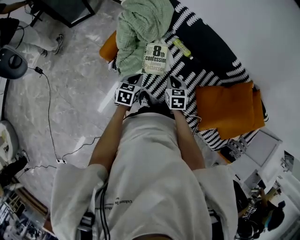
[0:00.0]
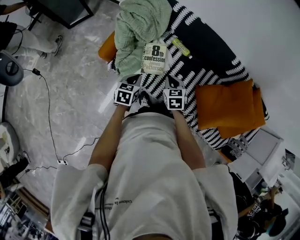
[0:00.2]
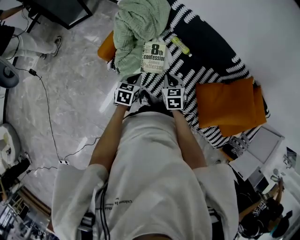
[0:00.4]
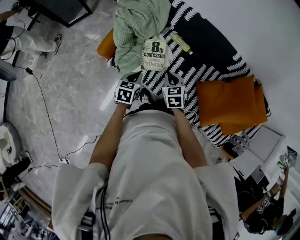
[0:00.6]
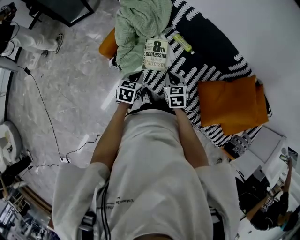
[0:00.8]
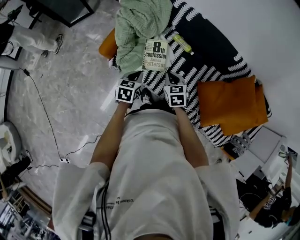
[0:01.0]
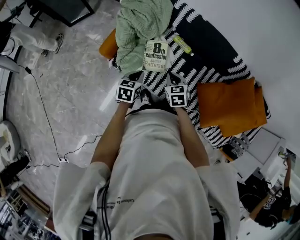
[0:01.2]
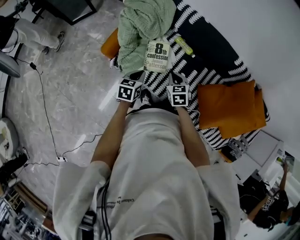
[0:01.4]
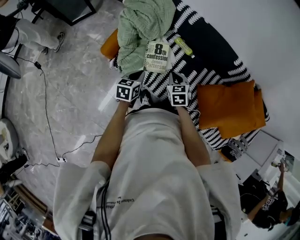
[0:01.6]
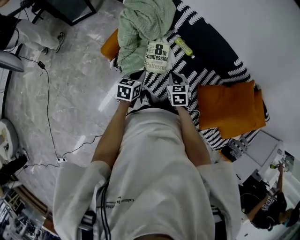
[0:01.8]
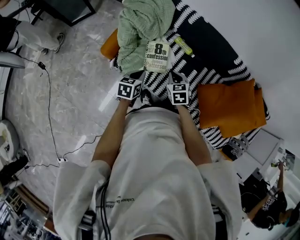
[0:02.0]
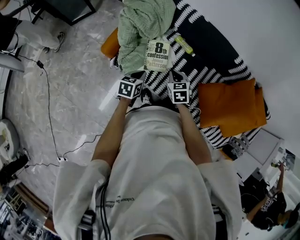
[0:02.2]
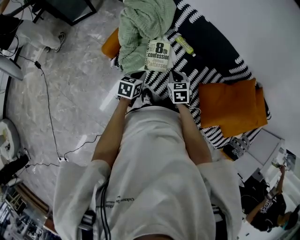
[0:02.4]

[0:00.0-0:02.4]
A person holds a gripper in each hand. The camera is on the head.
0:00.0 to 0:02.4: The grippers move only a little.

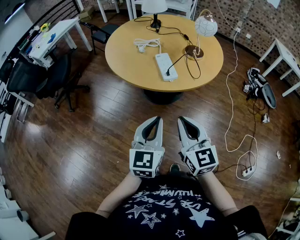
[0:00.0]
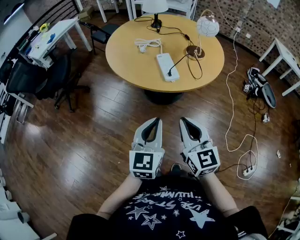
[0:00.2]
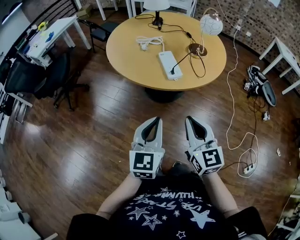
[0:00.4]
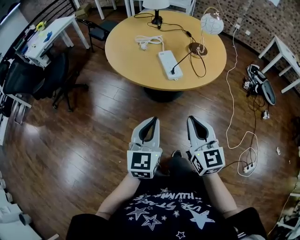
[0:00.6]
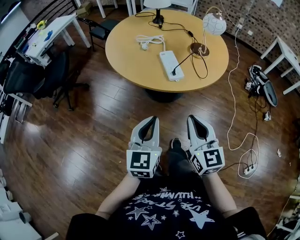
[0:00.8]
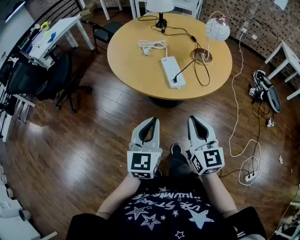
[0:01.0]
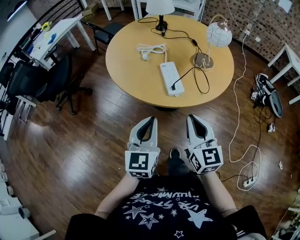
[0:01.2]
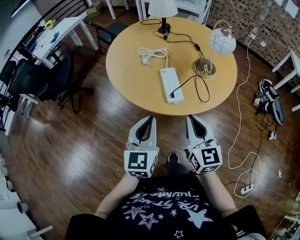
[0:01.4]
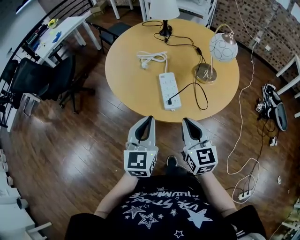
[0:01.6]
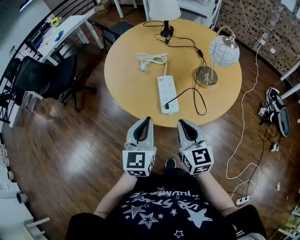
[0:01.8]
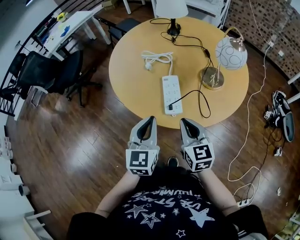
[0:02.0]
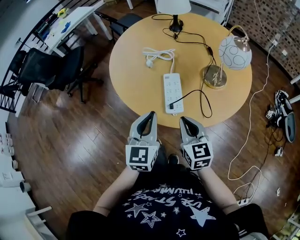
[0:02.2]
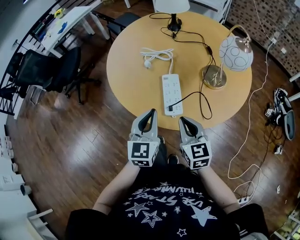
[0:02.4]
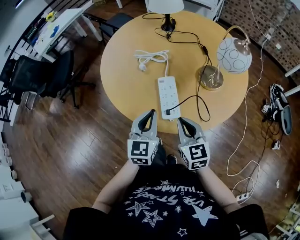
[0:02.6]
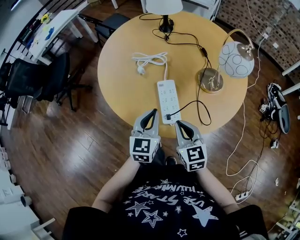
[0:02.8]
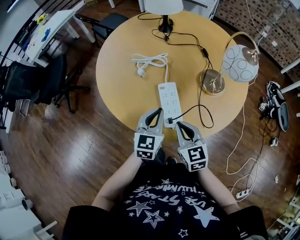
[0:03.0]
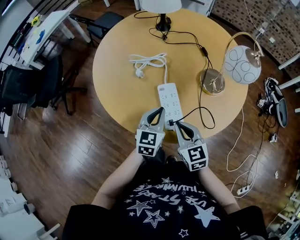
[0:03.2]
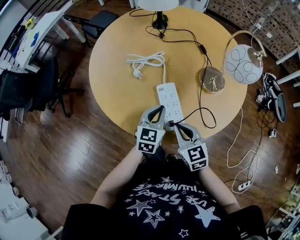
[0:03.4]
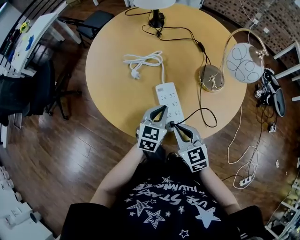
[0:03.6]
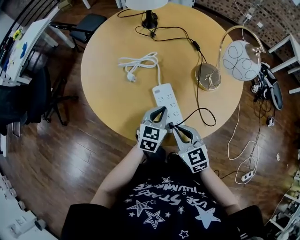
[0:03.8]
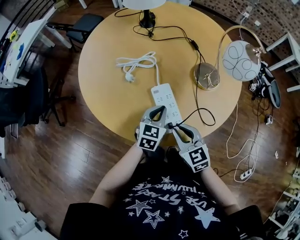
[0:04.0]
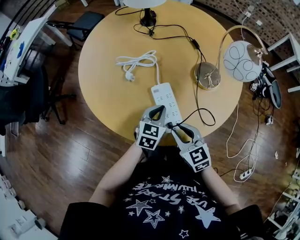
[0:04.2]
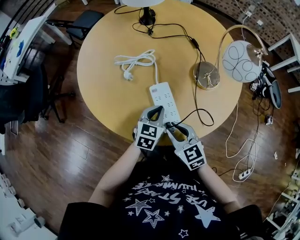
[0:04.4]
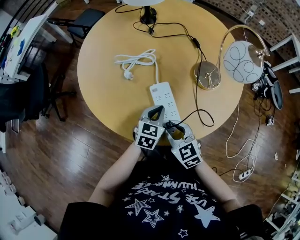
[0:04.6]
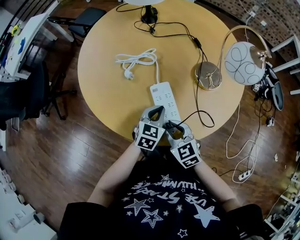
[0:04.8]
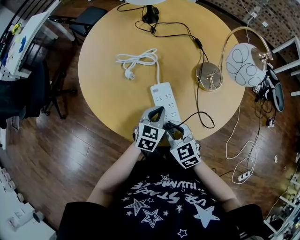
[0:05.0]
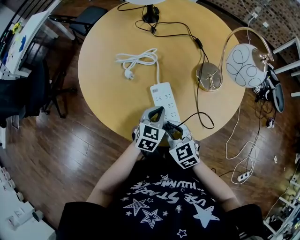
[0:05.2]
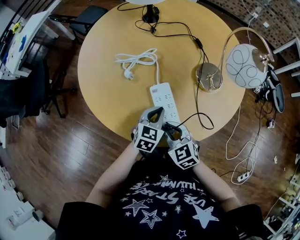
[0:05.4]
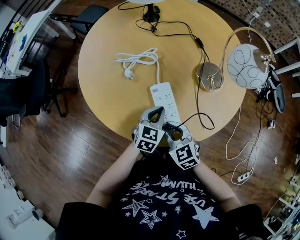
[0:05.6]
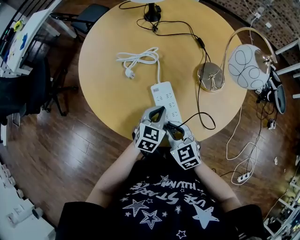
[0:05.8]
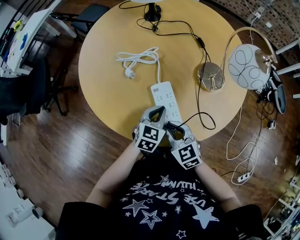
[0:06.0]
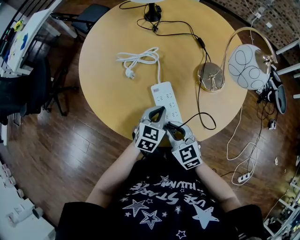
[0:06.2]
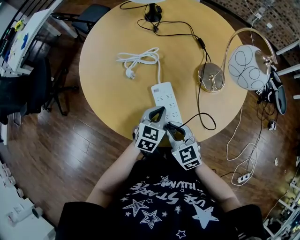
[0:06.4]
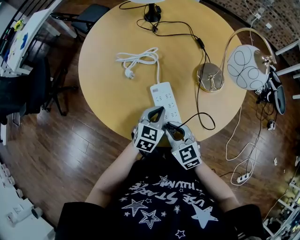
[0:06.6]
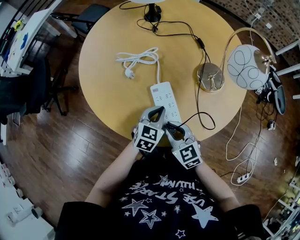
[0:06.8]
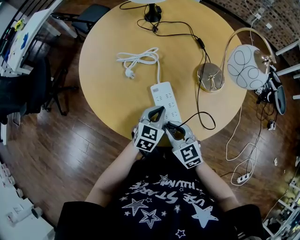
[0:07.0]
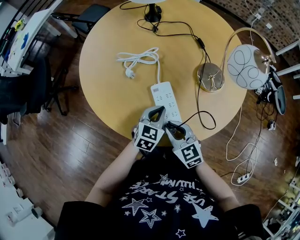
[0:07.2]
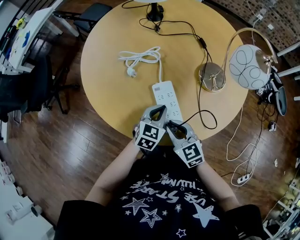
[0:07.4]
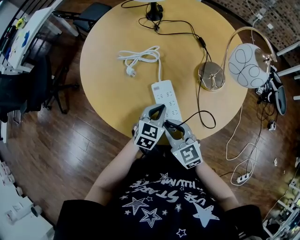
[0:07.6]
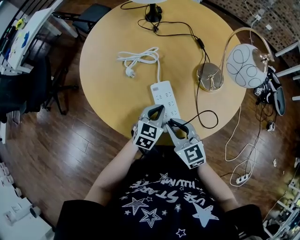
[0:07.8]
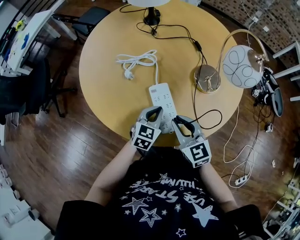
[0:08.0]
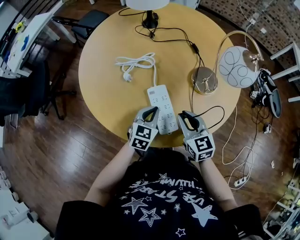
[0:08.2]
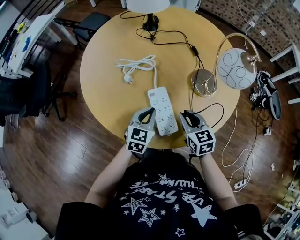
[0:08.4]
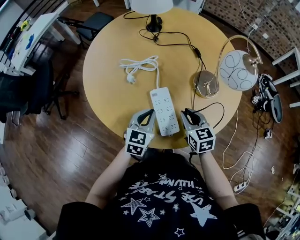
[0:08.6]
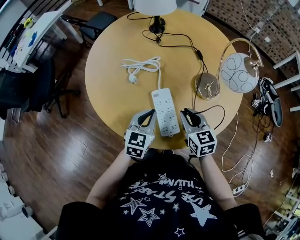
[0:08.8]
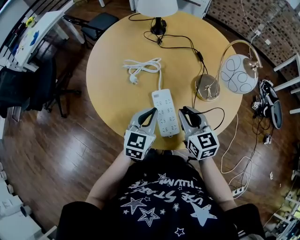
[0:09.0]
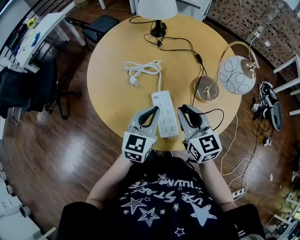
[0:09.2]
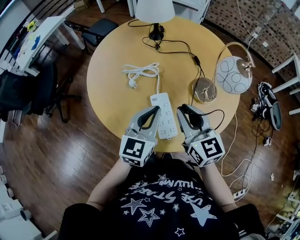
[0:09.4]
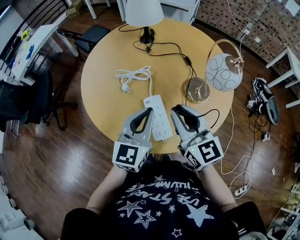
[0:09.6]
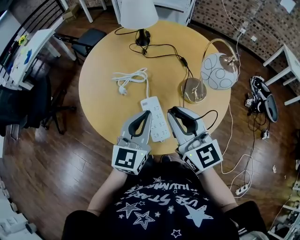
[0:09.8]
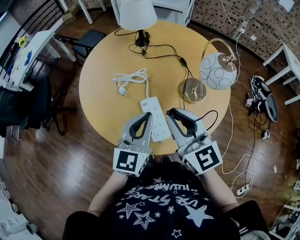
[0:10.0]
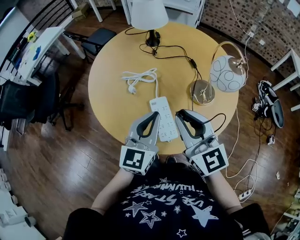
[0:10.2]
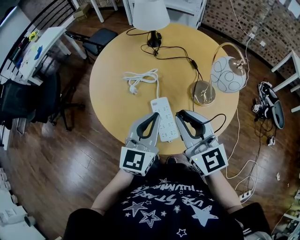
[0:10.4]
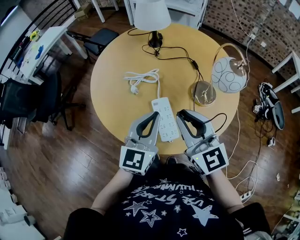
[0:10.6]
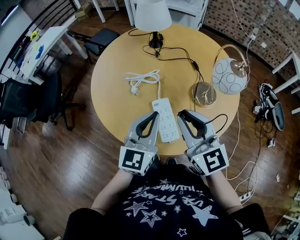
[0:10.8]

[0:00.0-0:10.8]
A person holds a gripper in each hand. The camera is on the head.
0:00.0 to 0:01.6: The two grippers go about 20 cm forward.
0:01.6 to 0:03.0: The right gripper heads downward and forward, covering approximately 15 cm; the left gripper moves forward and downward, about 20 cm.
0:03.0 to 0:04.6: The left gripper heads downward, covering approximately 10 cm, and rotates roughly 20 degrees; the right gripper moves roughly 5 cm, and opens up.
0:04.6 to 0:07.8: The grippers stay close to where they were, moving slightly.
0:07.8 to 0:09.2: The left gripper is displaced upward by roughly 15 cm, and turns by roughly 20 degrees; the right gripper travels upward, forward and to the right by about 15 cm.
0:09.2 to 0:10.8: Both grippers travel together upward, roughly 10 cm.

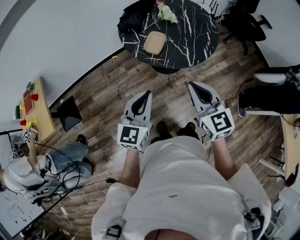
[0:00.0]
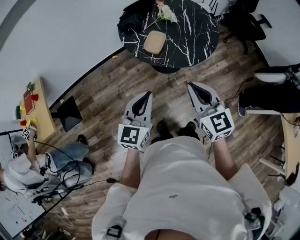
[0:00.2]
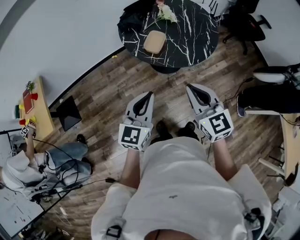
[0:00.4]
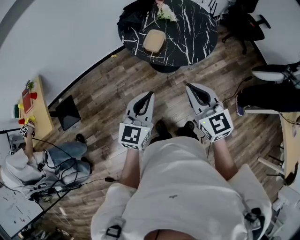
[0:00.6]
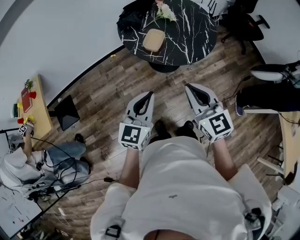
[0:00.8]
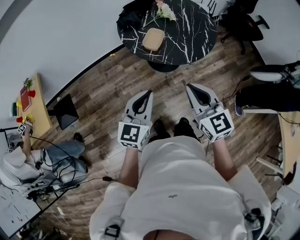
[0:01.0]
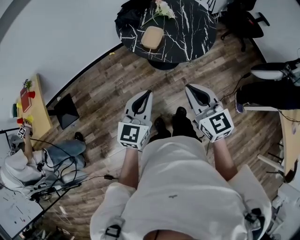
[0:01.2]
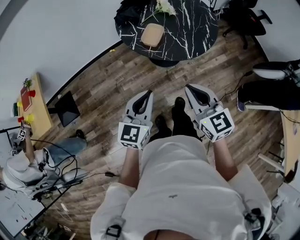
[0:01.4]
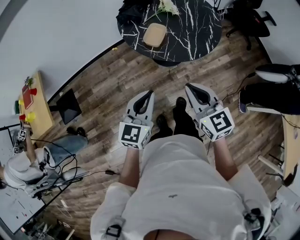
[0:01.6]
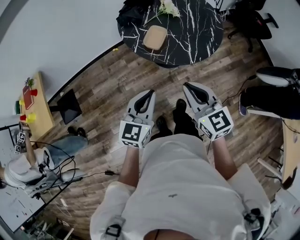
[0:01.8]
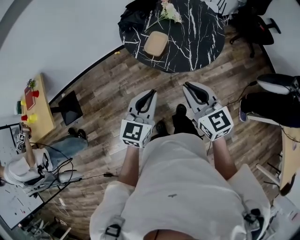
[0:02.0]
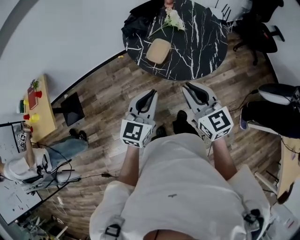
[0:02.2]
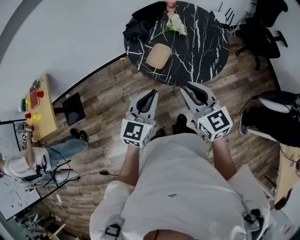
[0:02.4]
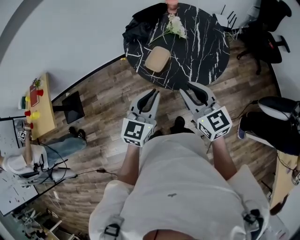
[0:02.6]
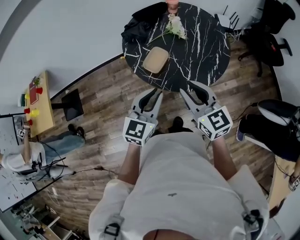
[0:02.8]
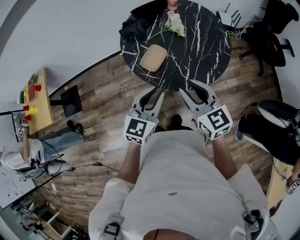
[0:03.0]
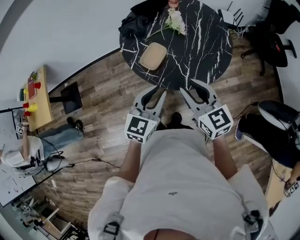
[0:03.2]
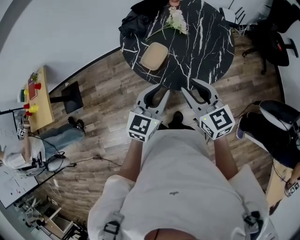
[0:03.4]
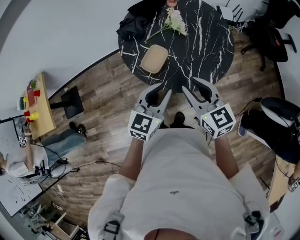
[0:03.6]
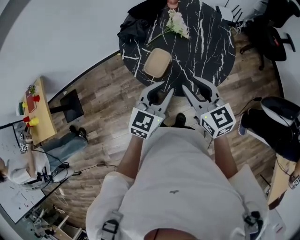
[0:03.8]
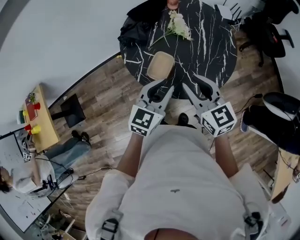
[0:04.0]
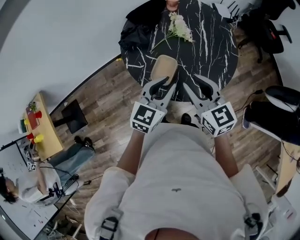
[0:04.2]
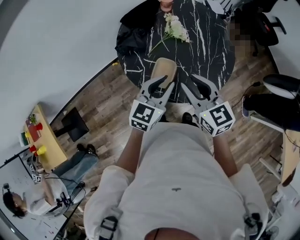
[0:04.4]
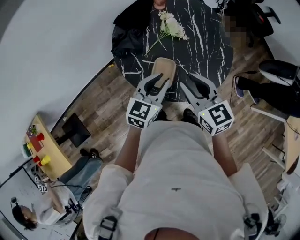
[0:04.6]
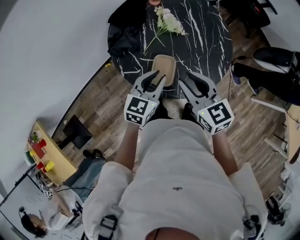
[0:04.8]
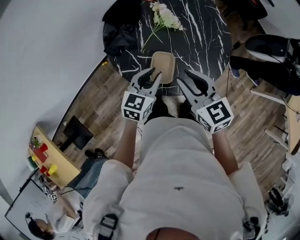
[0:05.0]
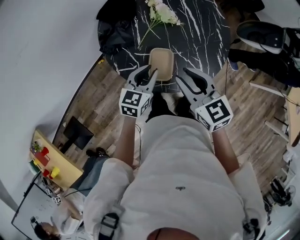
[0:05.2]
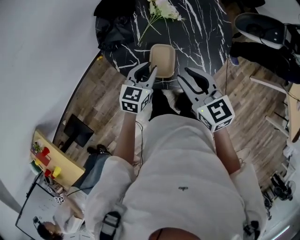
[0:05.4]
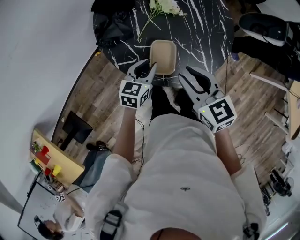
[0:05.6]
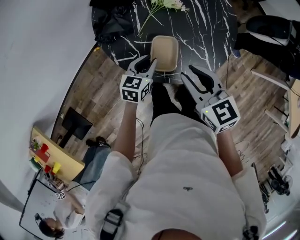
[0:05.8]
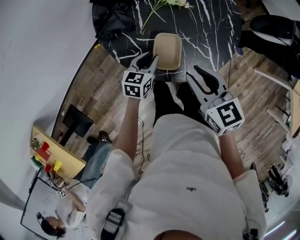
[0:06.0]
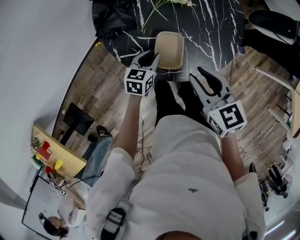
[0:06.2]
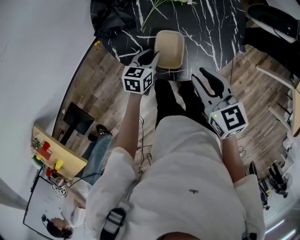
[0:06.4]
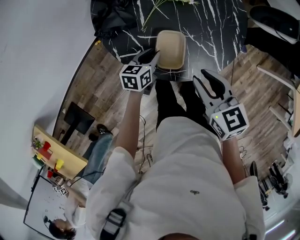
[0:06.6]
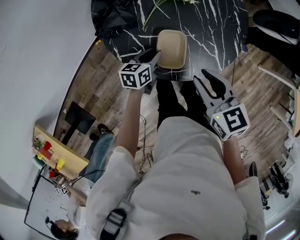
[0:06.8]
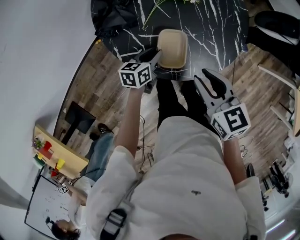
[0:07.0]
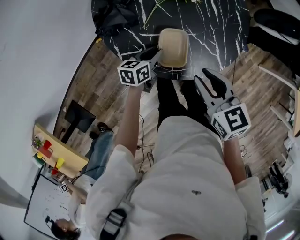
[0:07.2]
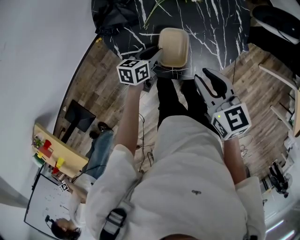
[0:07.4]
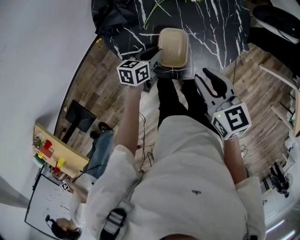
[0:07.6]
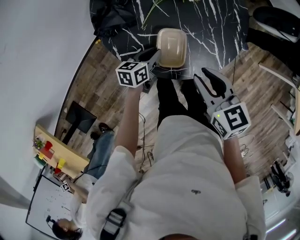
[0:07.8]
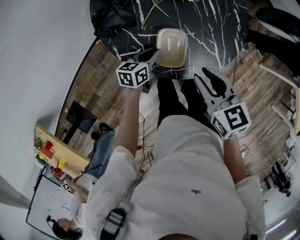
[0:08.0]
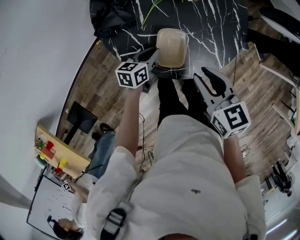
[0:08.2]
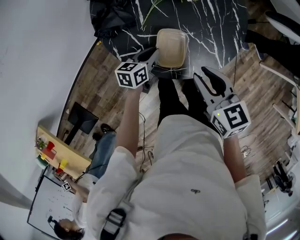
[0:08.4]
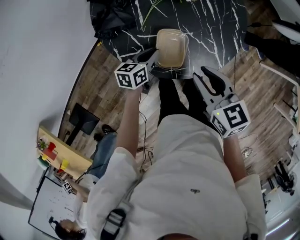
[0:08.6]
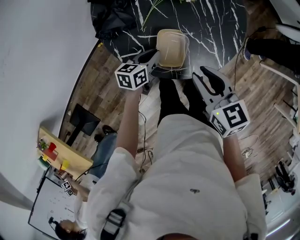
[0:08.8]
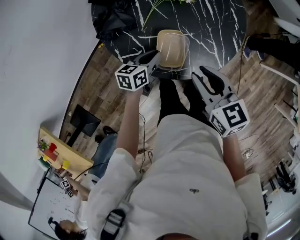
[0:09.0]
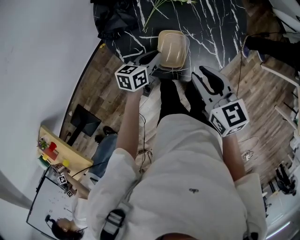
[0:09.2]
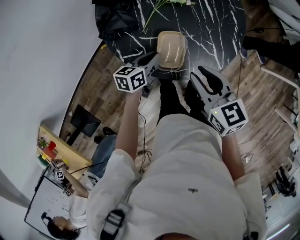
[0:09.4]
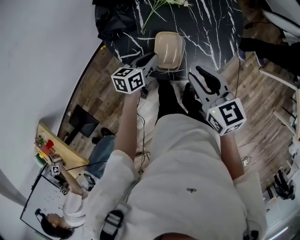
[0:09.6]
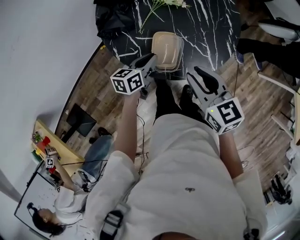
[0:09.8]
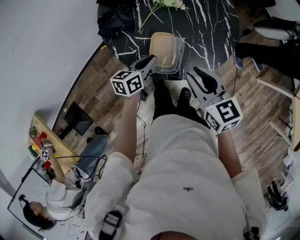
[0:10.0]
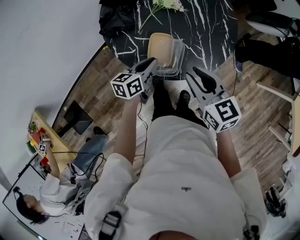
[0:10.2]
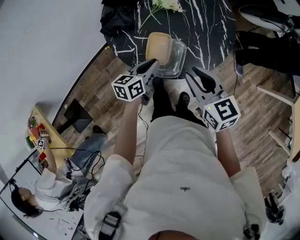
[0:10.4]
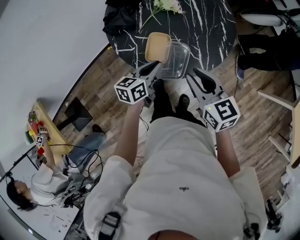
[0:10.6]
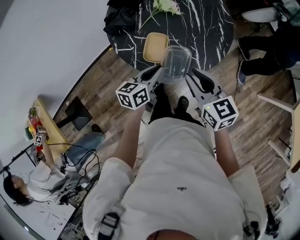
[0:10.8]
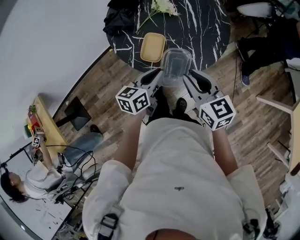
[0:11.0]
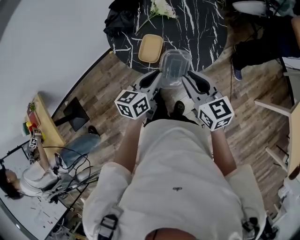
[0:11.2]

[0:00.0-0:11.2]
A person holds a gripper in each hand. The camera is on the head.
0:00.0 to 0:01.6: The grippers make only small movements.
0:01.6 to 0:03.2: Both grippers move forward and to the right, roughly 20 cm. The right gripper opens up.
0:03.2 to 0:04.8: The right gripper shifts by about 20 cm, and changes its angle by some 20 degrees, while the left gripper changes place by some 25 cm, and swivels roughly 30 degrees.
0:04.8 to 0:06.4: The right gripper shifts about 5 cm downward. The left gripper travels downward by some 20 cm, and swivels about 20 degrees.
0:06.4 to 0:08.0: There are only small adjustments of the grippers.
0:08.0 to 0:09.6: The left gripper heads upward, covering some 5 cm.
0:09.6 to 0:11.2: The left gripper goes approximately 25 cm upward, backward and to the right, and turns by some 20 degrees. The right gripper heads to the right and backward, covering about 15 cm.
